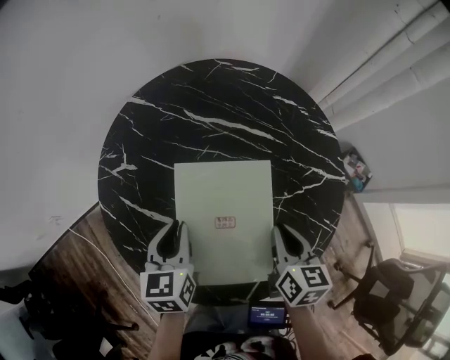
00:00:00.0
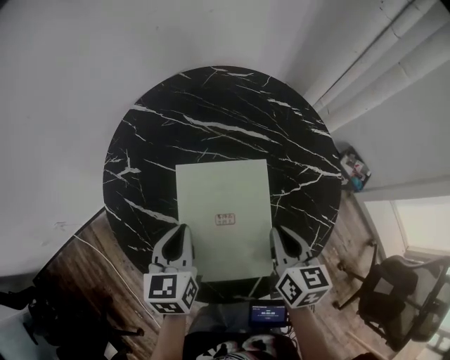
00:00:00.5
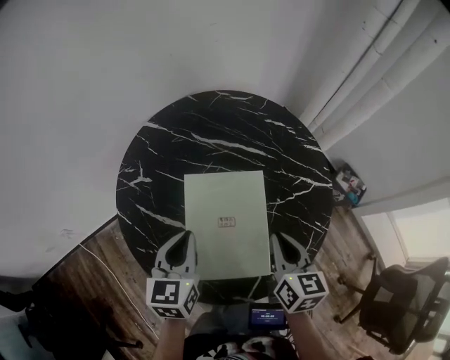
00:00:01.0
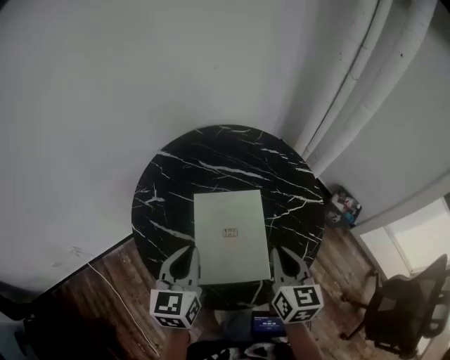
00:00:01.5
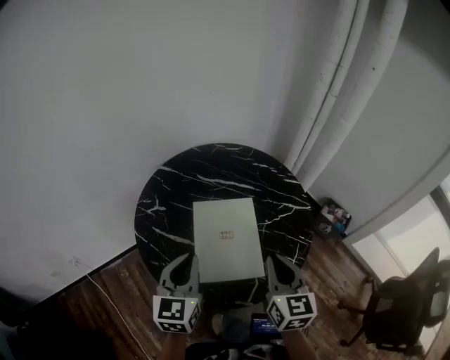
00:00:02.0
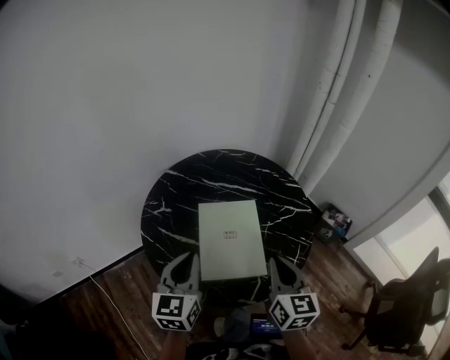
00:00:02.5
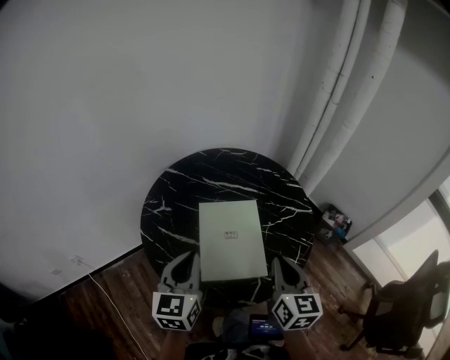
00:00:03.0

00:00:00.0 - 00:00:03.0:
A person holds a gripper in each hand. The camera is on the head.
00:00:00.0 - 00:00:01.5: The two grippers go some 15 cm upward and backward.
00:00:01.5 - 00:00:03.0: Both grippers move backward and upward, some 10 cm.

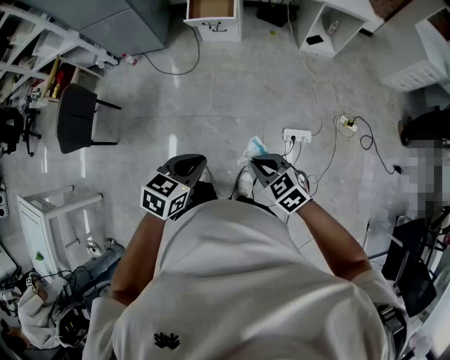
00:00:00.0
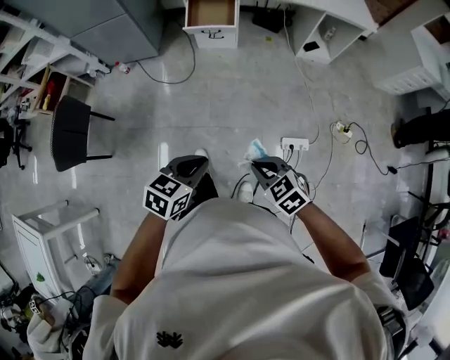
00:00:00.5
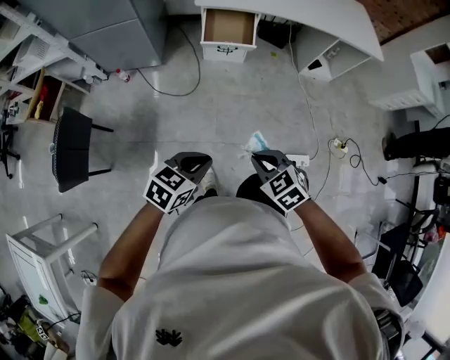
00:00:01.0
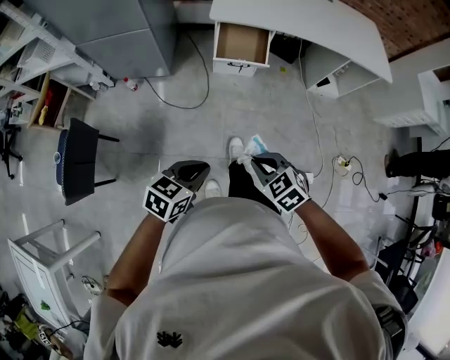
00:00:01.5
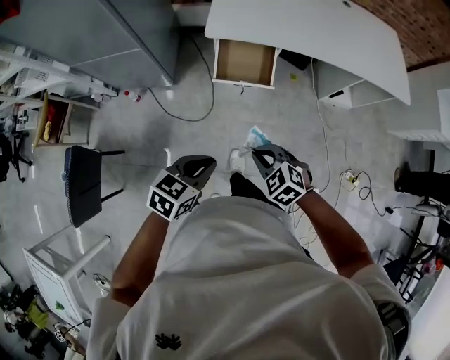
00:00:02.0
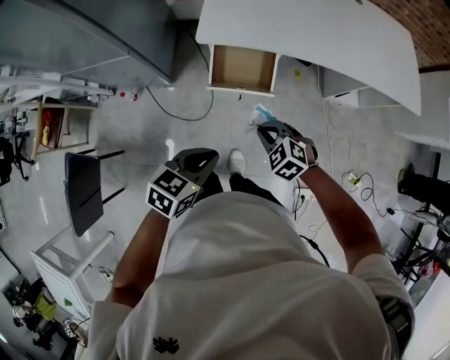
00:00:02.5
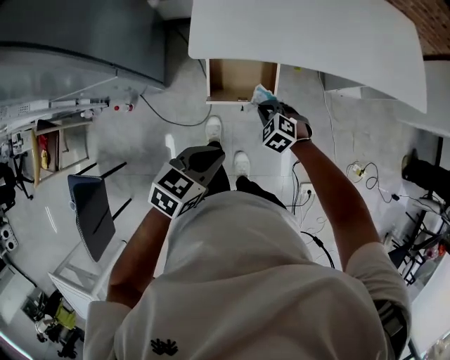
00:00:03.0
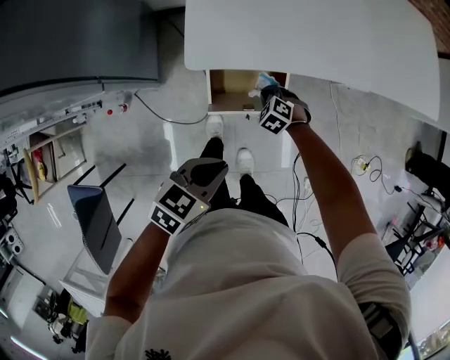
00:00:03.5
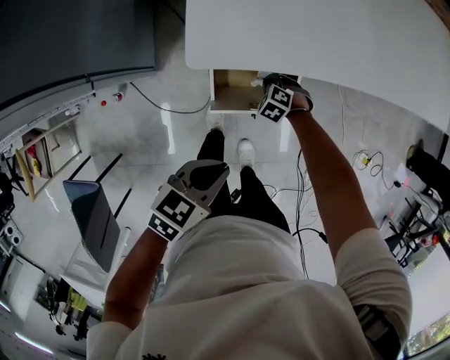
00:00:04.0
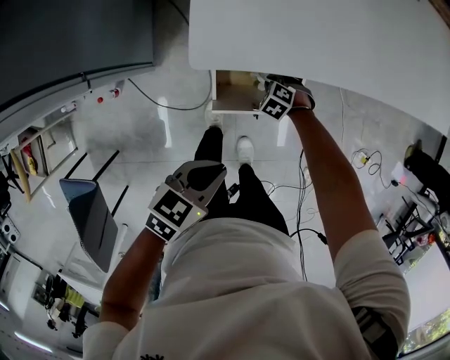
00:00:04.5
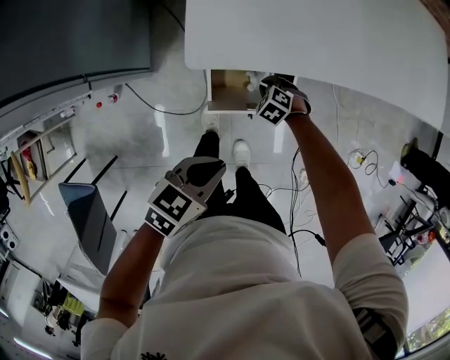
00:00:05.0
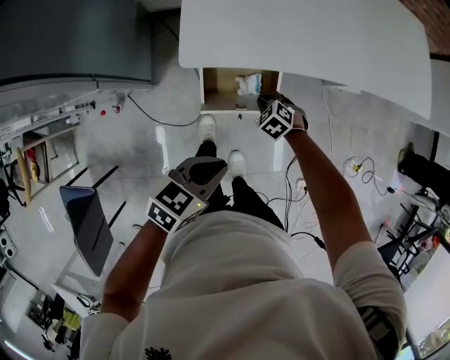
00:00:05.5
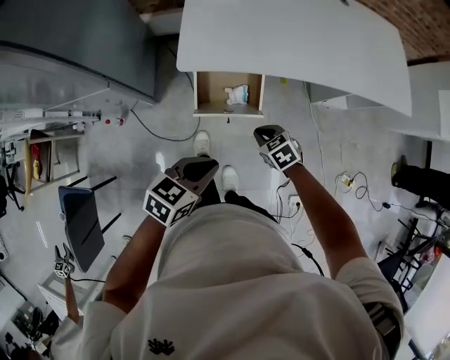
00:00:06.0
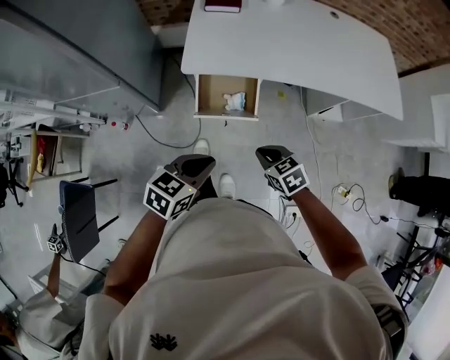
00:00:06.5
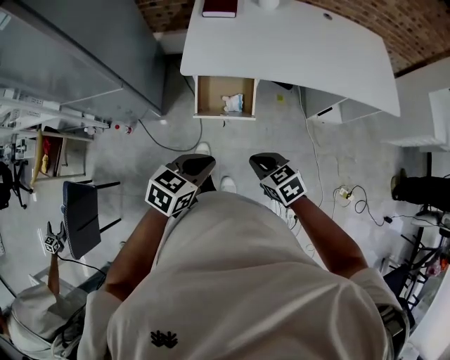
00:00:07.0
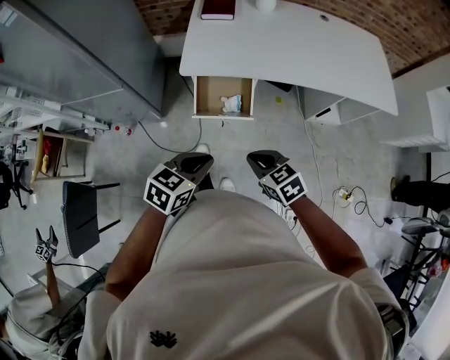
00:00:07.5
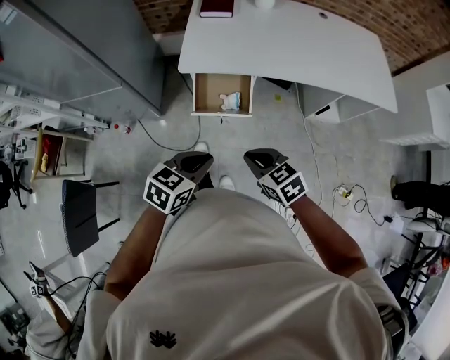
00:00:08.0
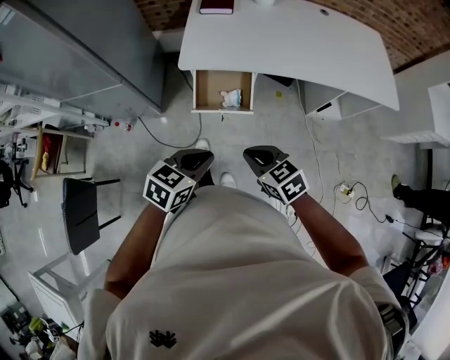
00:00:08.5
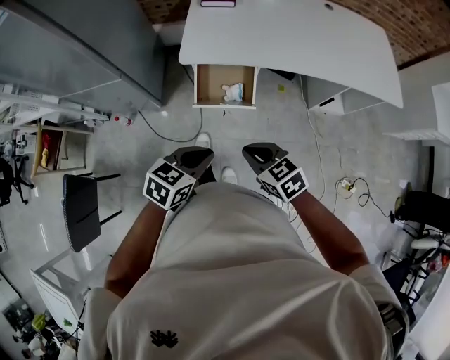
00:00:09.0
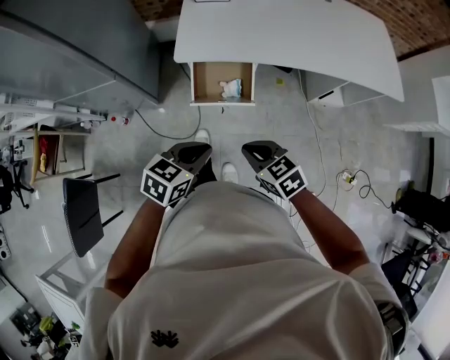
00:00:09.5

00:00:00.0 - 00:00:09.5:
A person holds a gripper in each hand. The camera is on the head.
00:00:00.0 - 00:00:02.0: The pair of grippers is taken forward and to the left, some 60 cm.
00:00:02.0 - 00:00:04.0: The right gripper ends up roughly 60 cm from where it was, and turns by some 30 degrees. The left gripper changes place by about 40 cm.
00:00:04.0 - 00:00:05.5: The left gripper changes place by some 5 cm. The right gripper shifts approximately 10 cm upward.
00:00:05.5 - 00:00:07.5: The left gripper goes some 25 cm backward, upward and to the right; the right gripper is displaced backward and upward by approximately 40 cm, and changes its angle by approximately 30 degrees.
00:00:07.5 - 00:00:09.5: The grippers stay close to where they were, moving slightly.

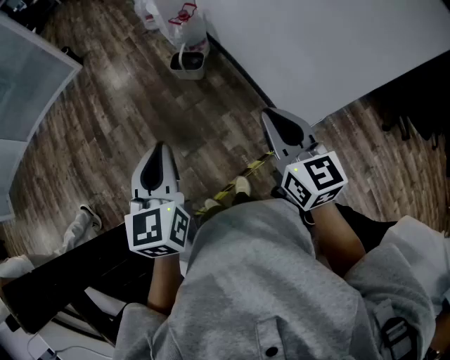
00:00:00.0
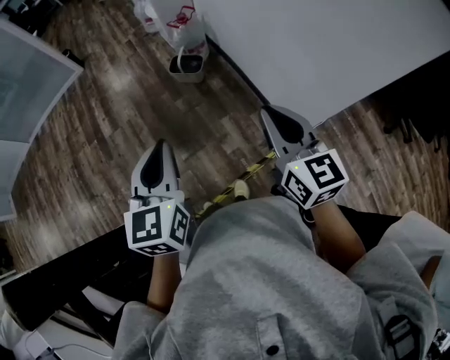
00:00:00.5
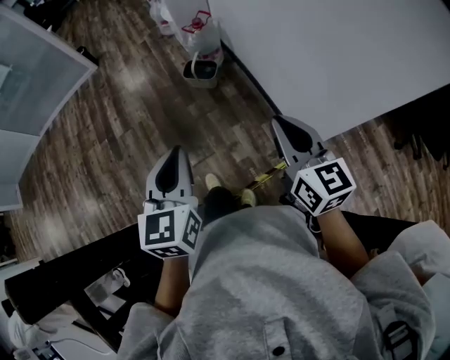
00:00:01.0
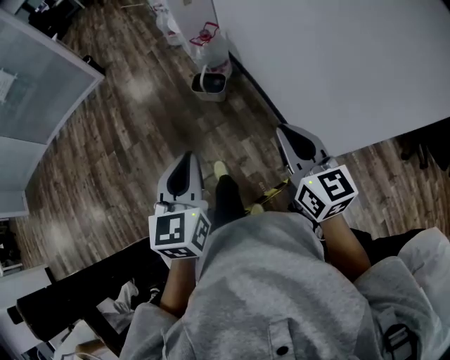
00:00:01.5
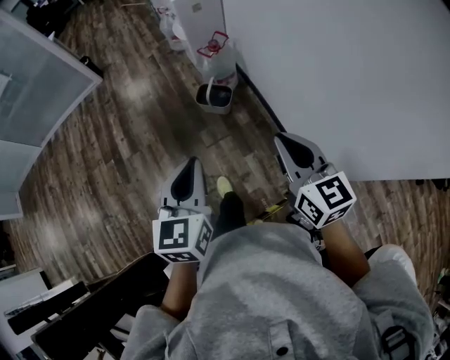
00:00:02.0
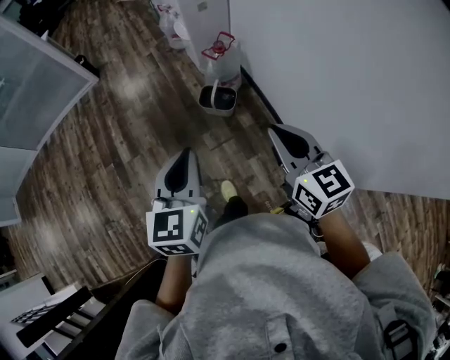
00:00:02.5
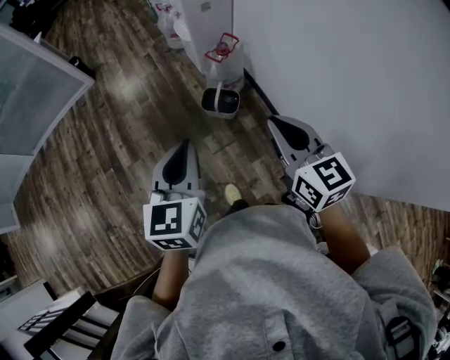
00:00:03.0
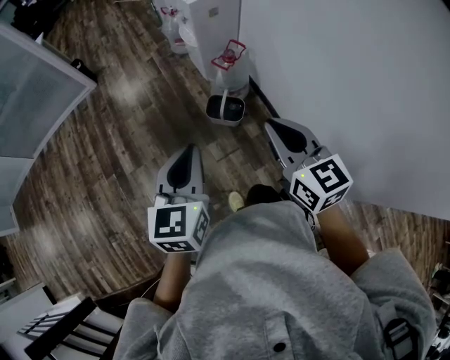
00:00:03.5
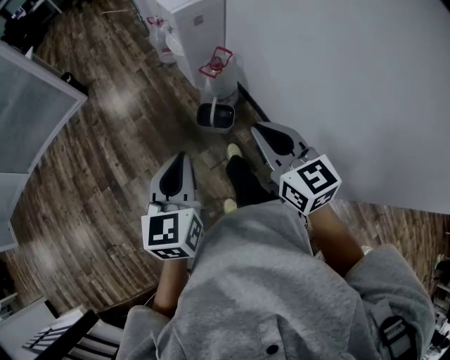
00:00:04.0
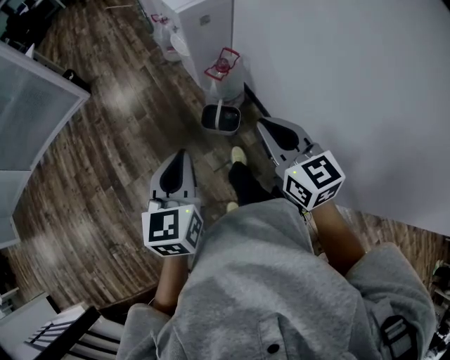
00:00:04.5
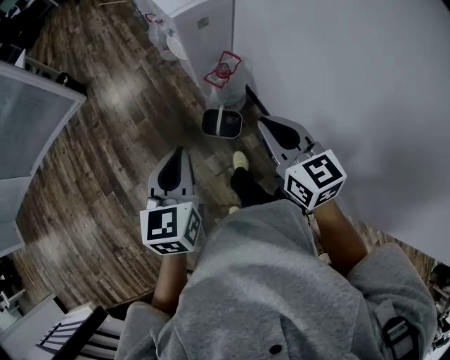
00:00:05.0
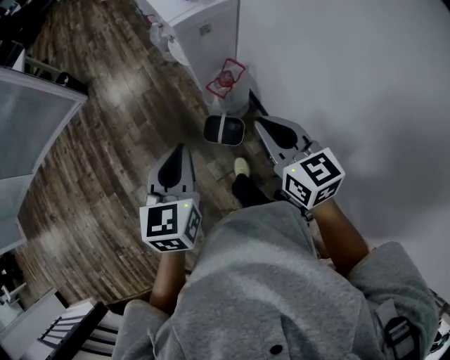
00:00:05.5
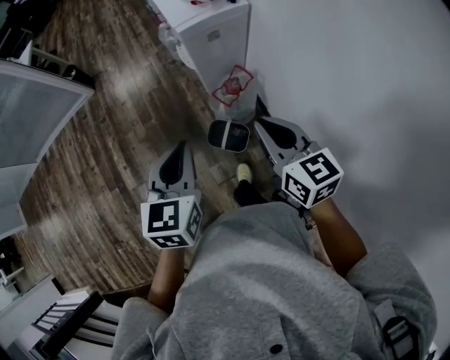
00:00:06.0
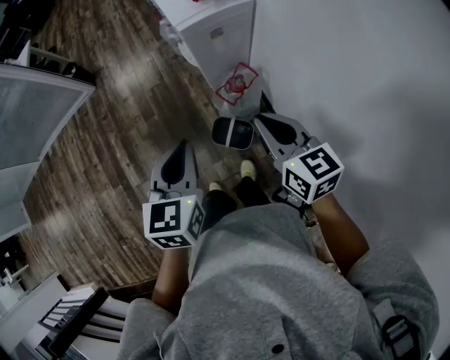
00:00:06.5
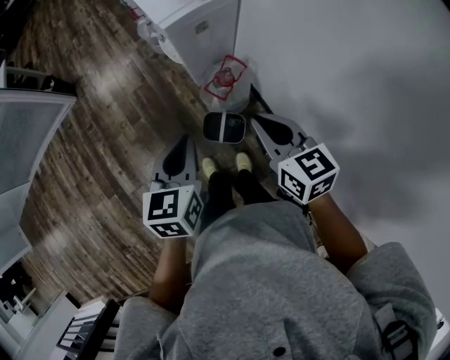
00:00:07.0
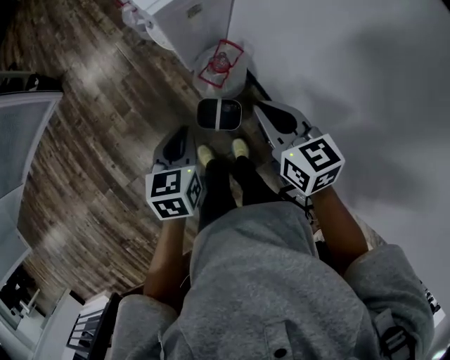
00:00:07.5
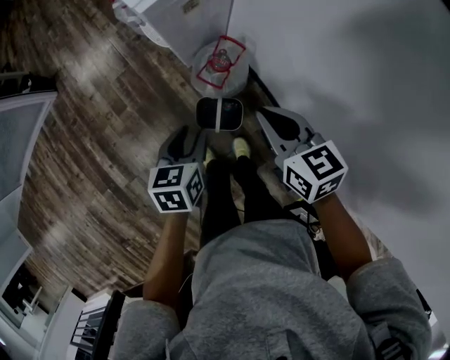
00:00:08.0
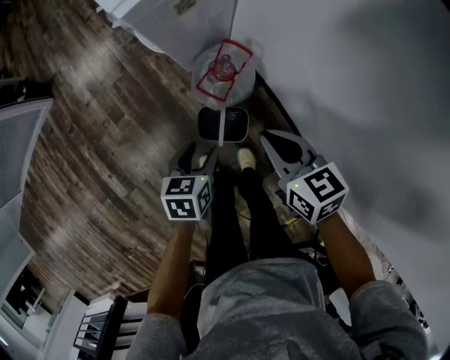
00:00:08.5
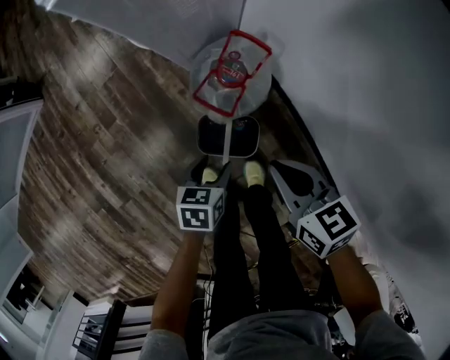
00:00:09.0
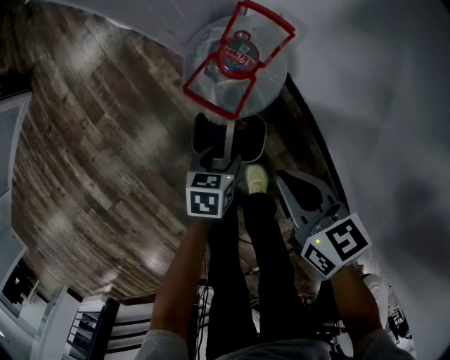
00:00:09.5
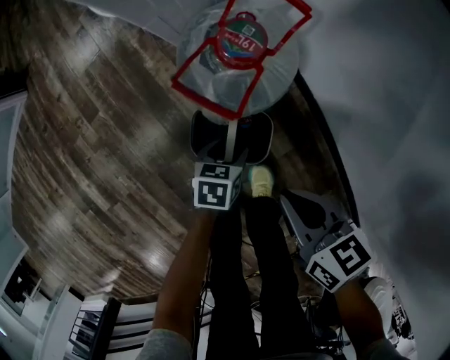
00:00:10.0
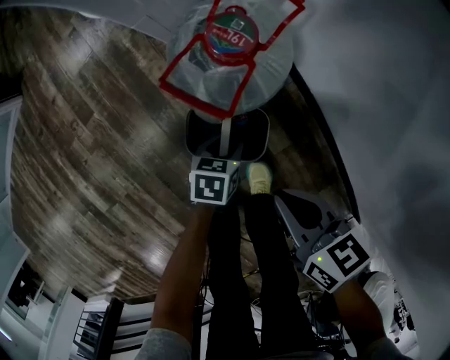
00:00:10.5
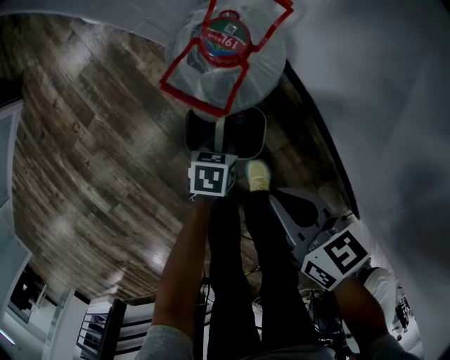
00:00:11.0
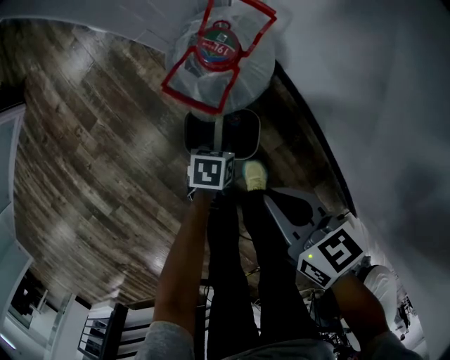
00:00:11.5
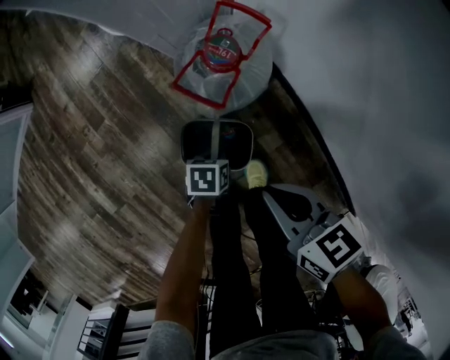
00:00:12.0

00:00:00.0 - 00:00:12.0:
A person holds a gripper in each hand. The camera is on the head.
00:00:00.0 - 00:00:02.0: Both grippers travel together forward, approximately 20 cm.
00:00:02.0 - 00:00:04.0: The two grippers go approximately 25 cm forward and to the left.
00:00:04.0 - 00:00:06.0: Both grippers move forward, roughly 30 cm.
00:00:06.0 - 00:00:08.0: The right gripper moves downward and forward, about 15 cm, while the left gripper moves downward and forward, approximately 25 cm, swivels about 30 degrees, and opens.
00:00:08.0 - 00:00:10.0: The two grippers go approximately 40 cm downward. The left gripper swivels approximately 20 degrees, and opens up. The right gripper changes its angle by some 20 degrees.
00:00:10.0 - 00:00:12.0: The left gripper shifts by some 5 cm, and closes up; the right gripper goes about 10 cm upward.

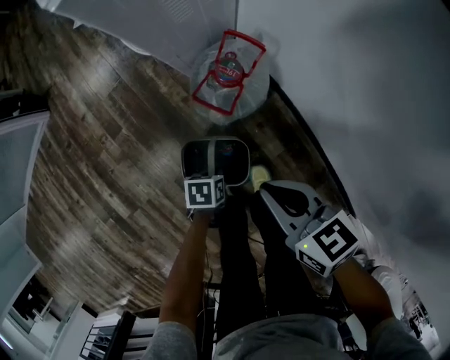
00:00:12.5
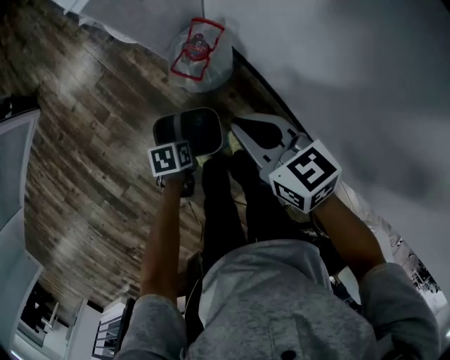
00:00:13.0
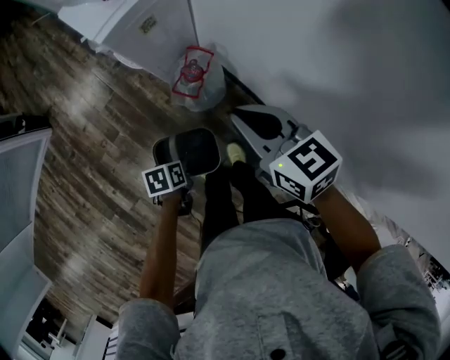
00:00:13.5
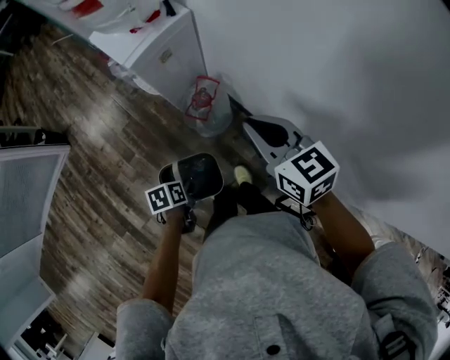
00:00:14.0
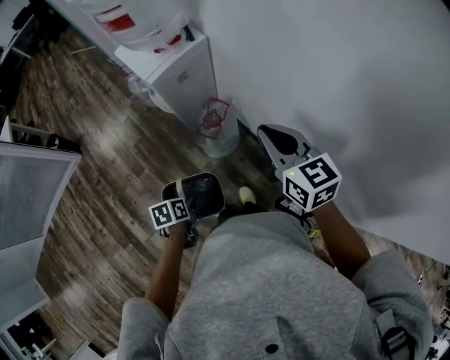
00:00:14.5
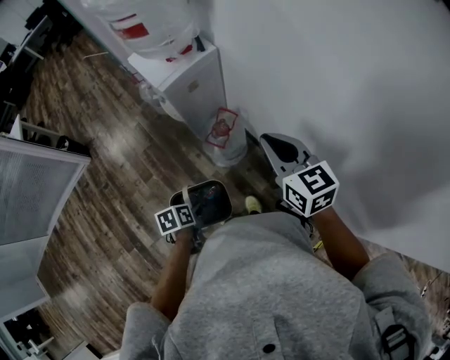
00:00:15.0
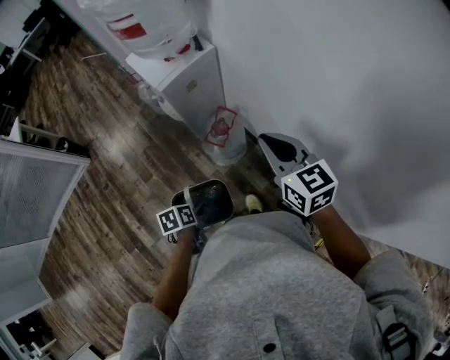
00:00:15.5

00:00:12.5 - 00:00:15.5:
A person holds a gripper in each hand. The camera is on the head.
00:00:12.5 - 00:00:14.0: Both grippers move upward, some 30 cm. The right gripper swivels about 30 degrees.
00:00:14.0 - 00:00:15.5: The left gripper goes some 5 cm upward.
